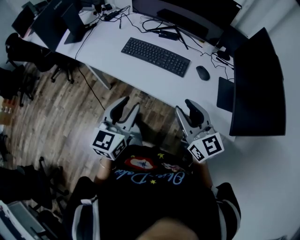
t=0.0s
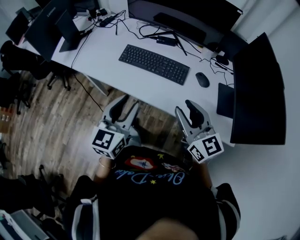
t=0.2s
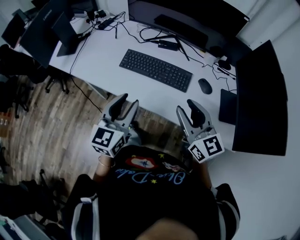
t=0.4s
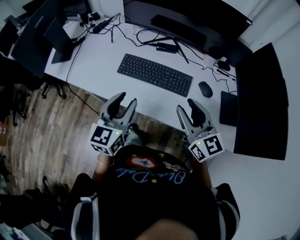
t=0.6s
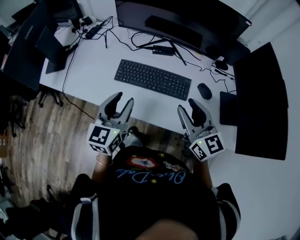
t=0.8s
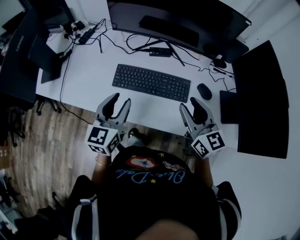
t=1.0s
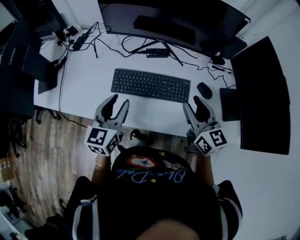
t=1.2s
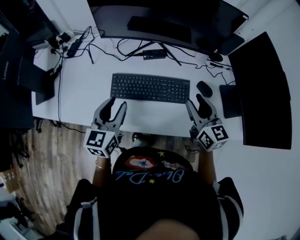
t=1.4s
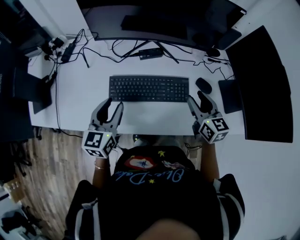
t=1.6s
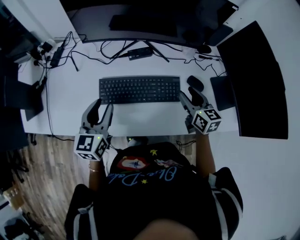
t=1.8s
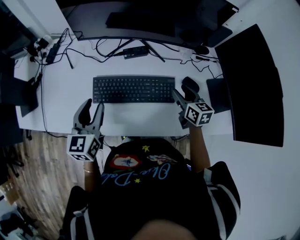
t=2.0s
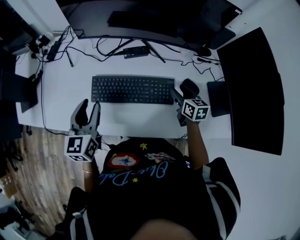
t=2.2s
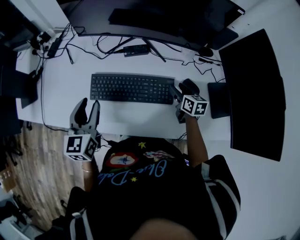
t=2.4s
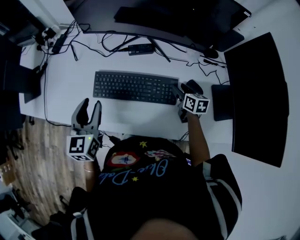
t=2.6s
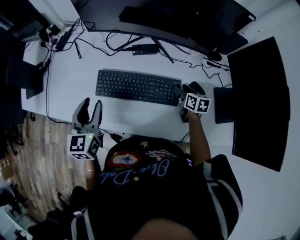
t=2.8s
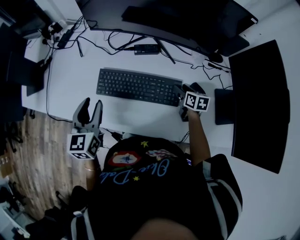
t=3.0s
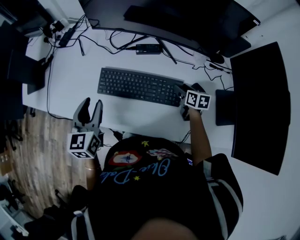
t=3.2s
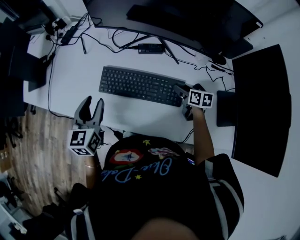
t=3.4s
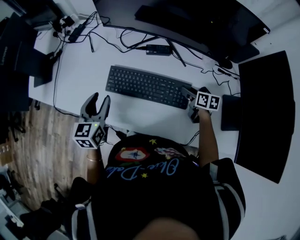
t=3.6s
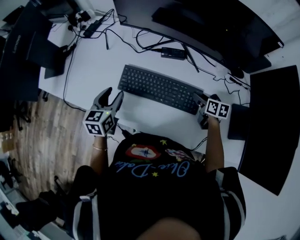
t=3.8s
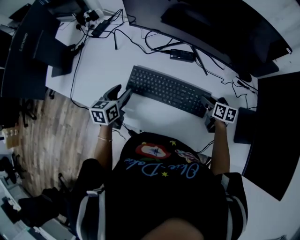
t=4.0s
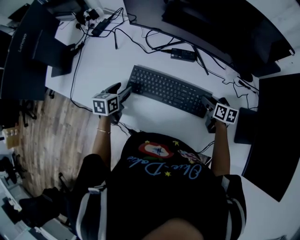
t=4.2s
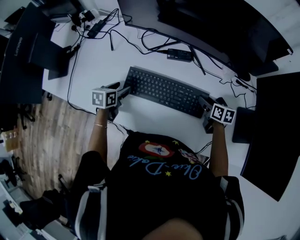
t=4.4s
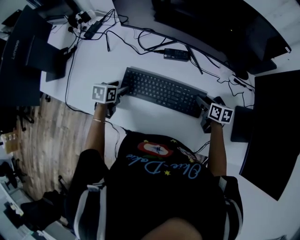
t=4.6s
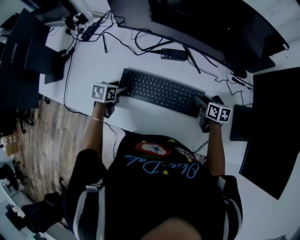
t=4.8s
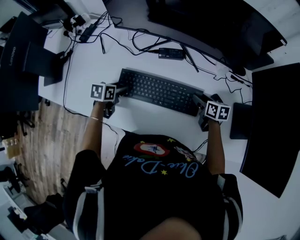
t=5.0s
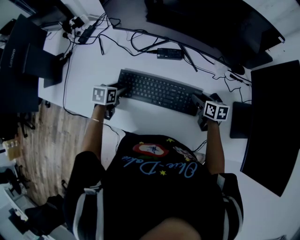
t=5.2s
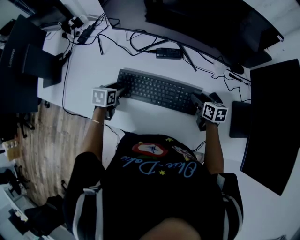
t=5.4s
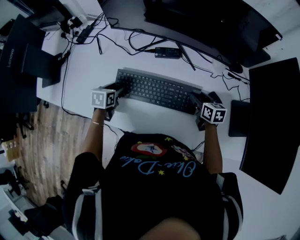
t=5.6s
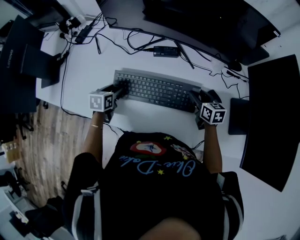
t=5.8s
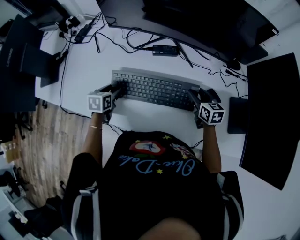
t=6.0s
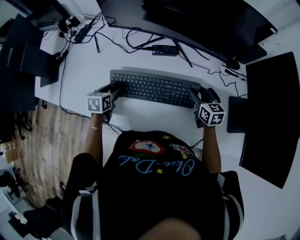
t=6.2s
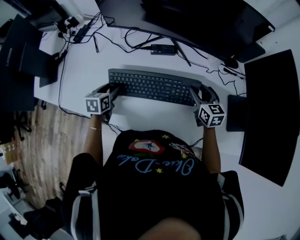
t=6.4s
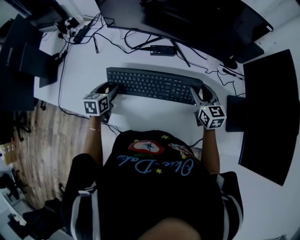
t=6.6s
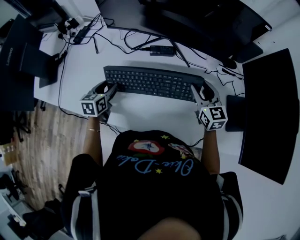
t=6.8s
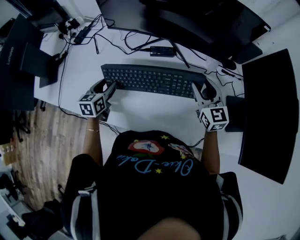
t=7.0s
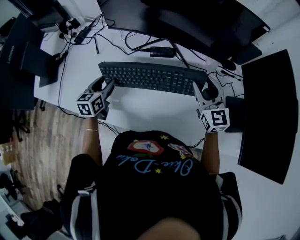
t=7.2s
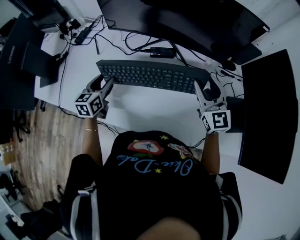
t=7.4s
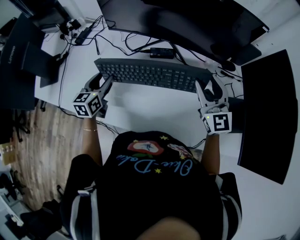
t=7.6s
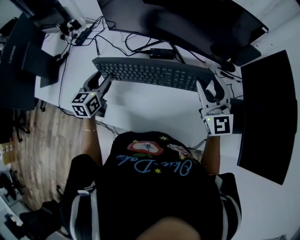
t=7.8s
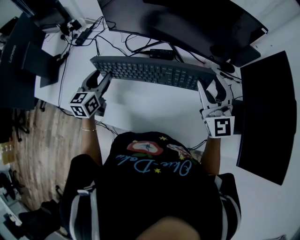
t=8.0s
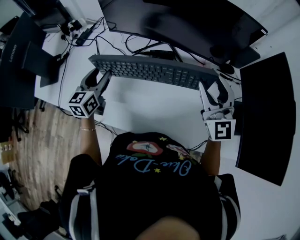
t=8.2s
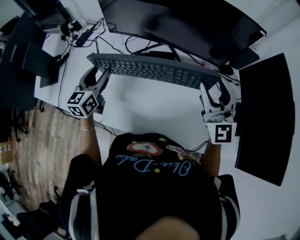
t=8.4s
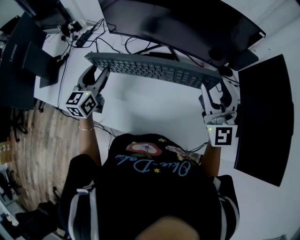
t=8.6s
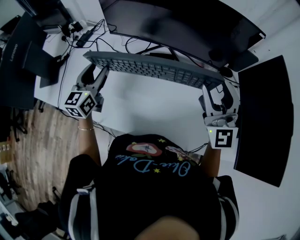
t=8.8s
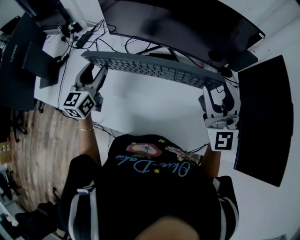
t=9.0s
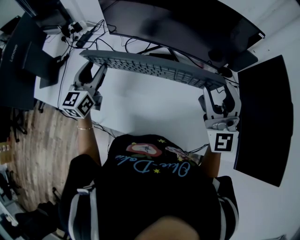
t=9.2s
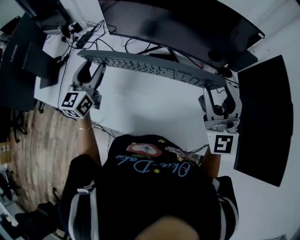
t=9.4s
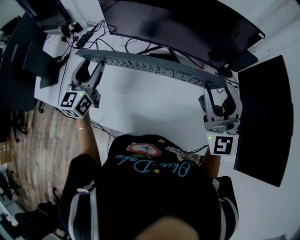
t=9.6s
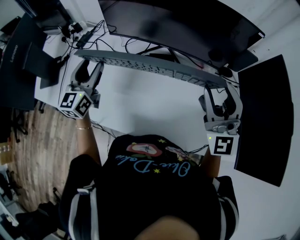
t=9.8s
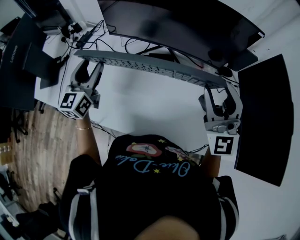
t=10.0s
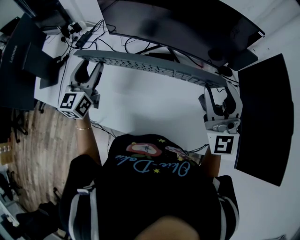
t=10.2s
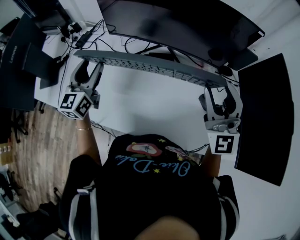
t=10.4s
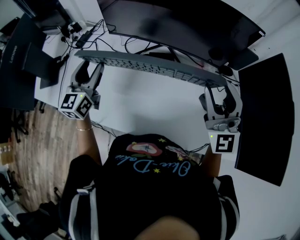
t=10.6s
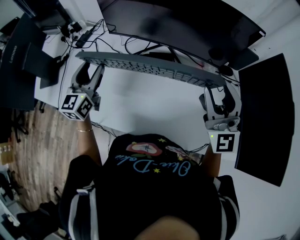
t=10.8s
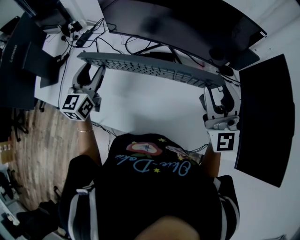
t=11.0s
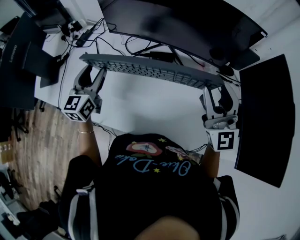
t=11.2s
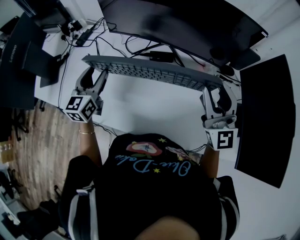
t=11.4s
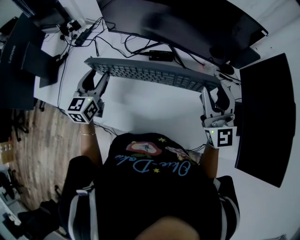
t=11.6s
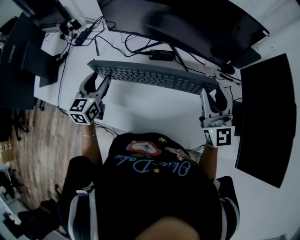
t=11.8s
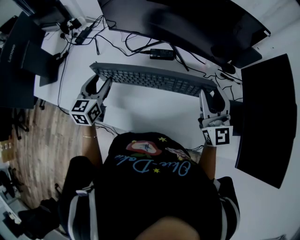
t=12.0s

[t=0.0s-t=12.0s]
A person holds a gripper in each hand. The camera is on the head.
t=0.0s to t=1.6s: The right gripper moves about 25 cm, and rotates roughly 40 degrees. The left gripper changes place by approximately 35 cm.
t=1.6s to t=3.0s: The right gripper moves downward and forward, approximately 20 cm, and swivels about 30 degrees.
t=3.0s to t=4.4s: The left gripper shifts approximately 20 cm downward and forward, turns by approximately 40 degrees, and opens its fingers.
t=4.4s to t=6.0s: There are only small adjustments of the grippers.
t=6.0s to t=7.6s: The left gripper moves upward, approximately 15 cm, and changes its angle by some 30 degrees. The right gripper heads upward, covering about 20 cm, and tilts its fingers some 30 degrees upward.
t=7.6s to t=9.0s: Both grippers travel together upward, roughly 10 cm. The right gripper rotates approximately 20 degrees.
t=9.0s to t=10.4s: The grippers make only small movements.
t=10.4s to t=12.0s: The two grippers go some 10 cm downward. The right gripper turns by about 30 degrees.

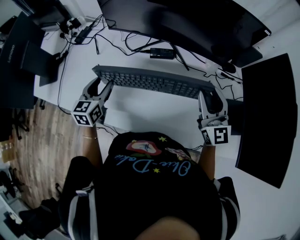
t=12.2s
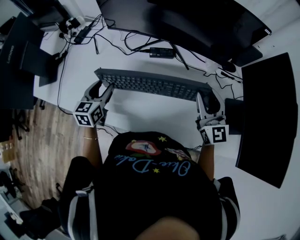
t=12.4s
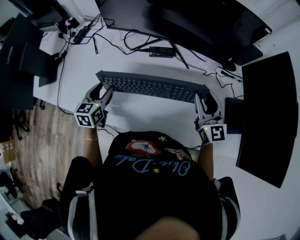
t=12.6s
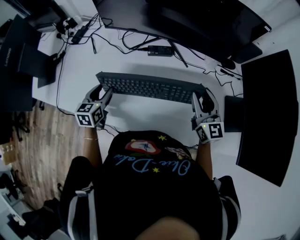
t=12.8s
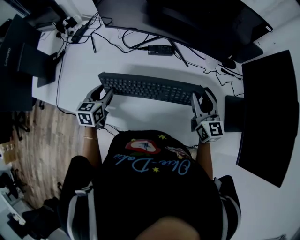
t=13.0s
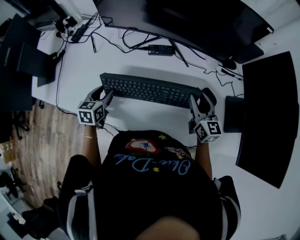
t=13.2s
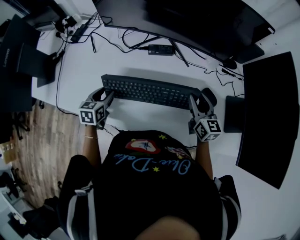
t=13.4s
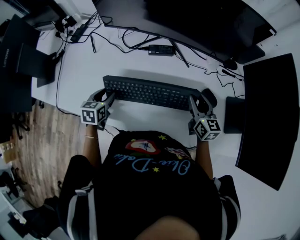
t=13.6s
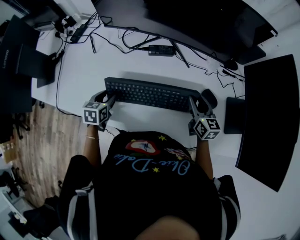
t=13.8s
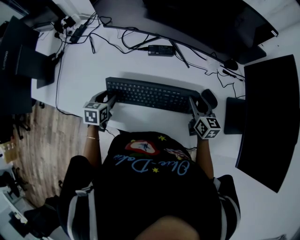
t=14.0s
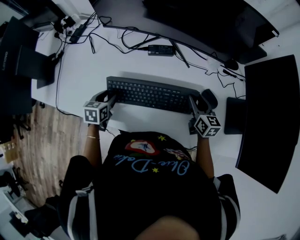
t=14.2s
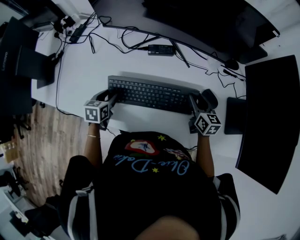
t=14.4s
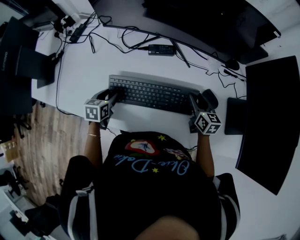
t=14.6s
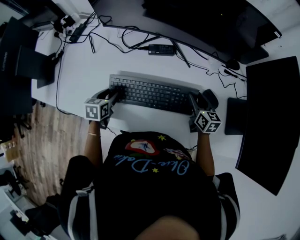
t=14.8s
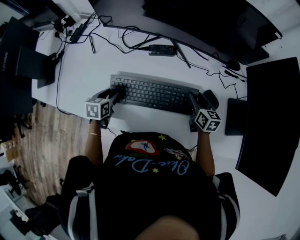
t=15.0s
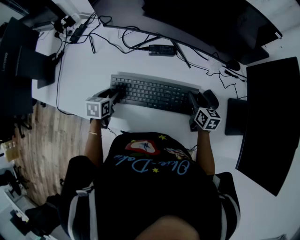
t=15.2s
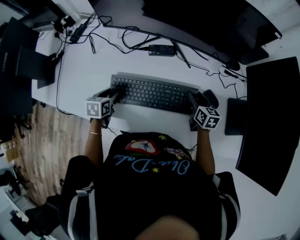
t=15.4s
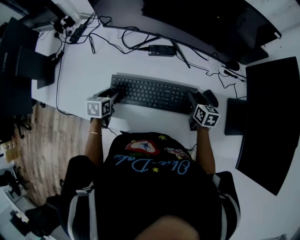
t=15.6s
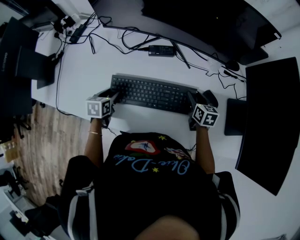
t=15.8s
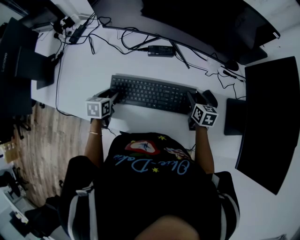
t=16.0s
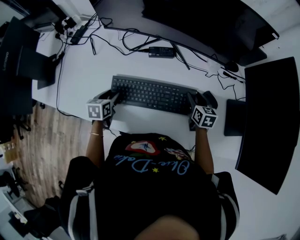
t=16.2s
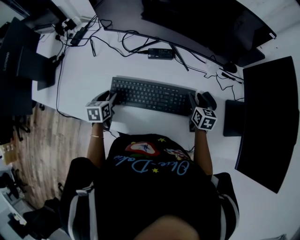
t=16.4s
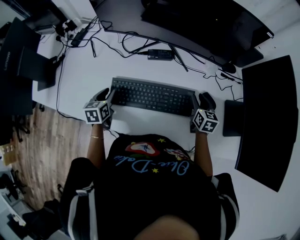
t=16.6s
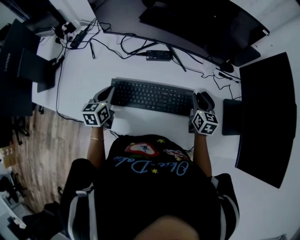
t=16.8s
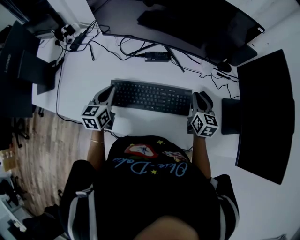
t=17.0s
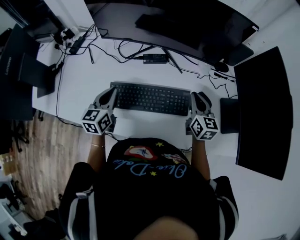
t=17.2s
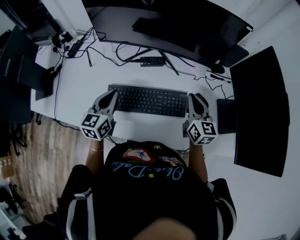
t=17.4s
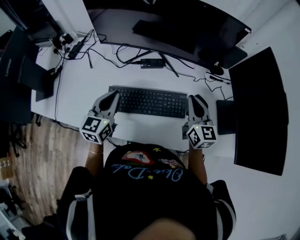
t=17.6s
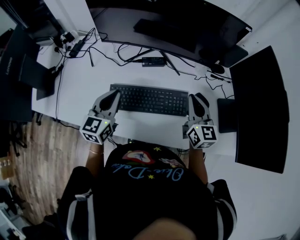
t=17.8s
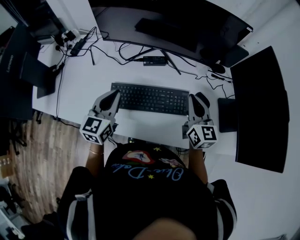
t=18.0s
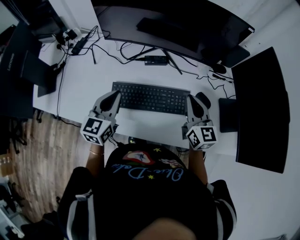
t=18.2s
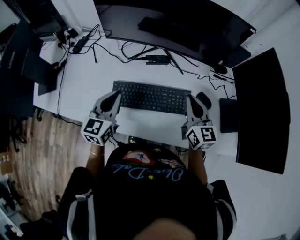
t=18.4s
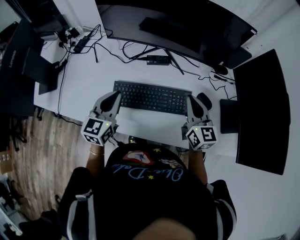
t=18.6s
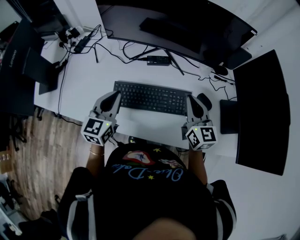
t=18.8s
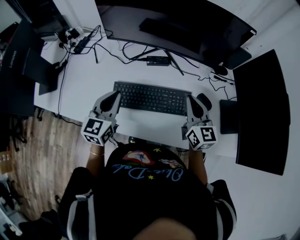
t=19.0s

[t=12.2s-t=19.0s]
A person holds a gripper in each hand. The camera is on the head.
t=12.2s to t=13.6s: The grippers both shift downward by about 15 cm. The right gripper changes its angle by about 30 degrees. The left gripper changes its angle by about 20 degrees.
t=13.6s to t=15.0s: The right gripper shifts approximately 5 cm downward.
t=15.0s to t=16.2s: There are only small adjustments of the grippers.
t=16.2s to t=17.6s: The two grippers go some 20 cm upward. The right gripper rotates about 30 degrees, and closes. Meanwhile the left gripper angles its fingers upward, by about 40 degrees, and closes.
t=17.6s to t=19.0s: There are only small adjustments of the grippers.

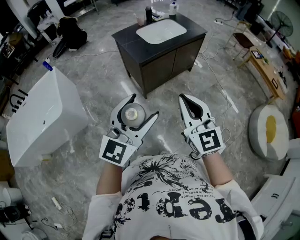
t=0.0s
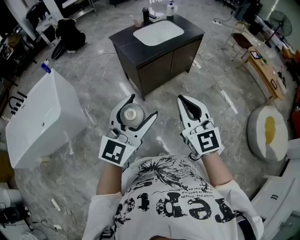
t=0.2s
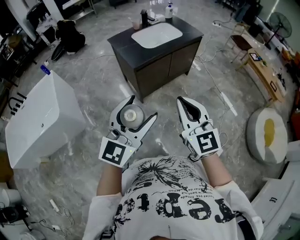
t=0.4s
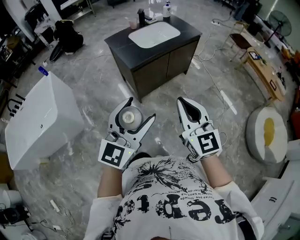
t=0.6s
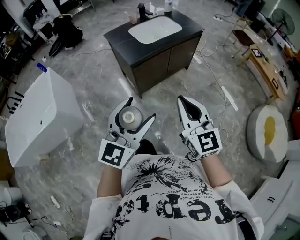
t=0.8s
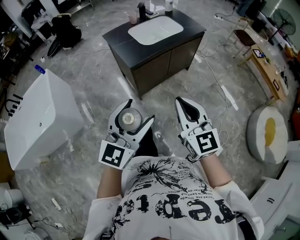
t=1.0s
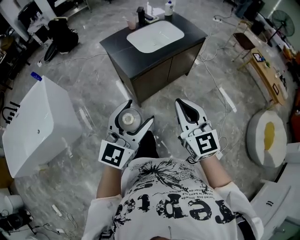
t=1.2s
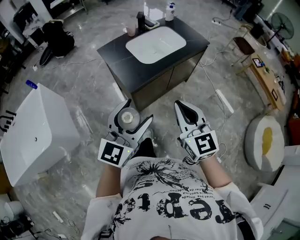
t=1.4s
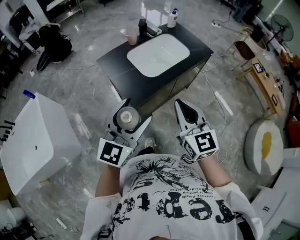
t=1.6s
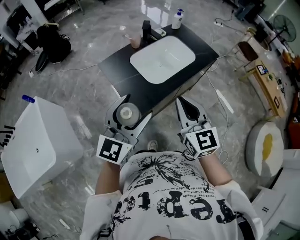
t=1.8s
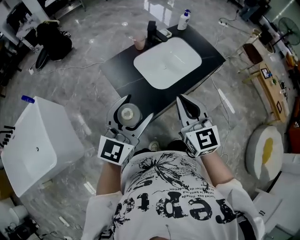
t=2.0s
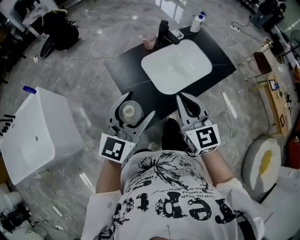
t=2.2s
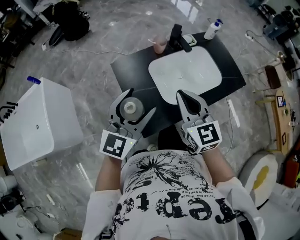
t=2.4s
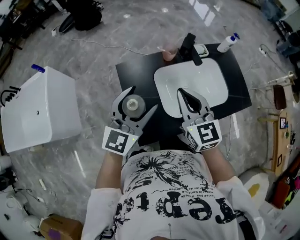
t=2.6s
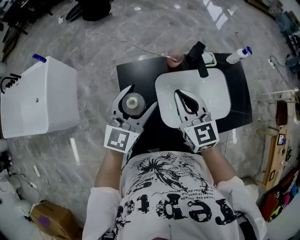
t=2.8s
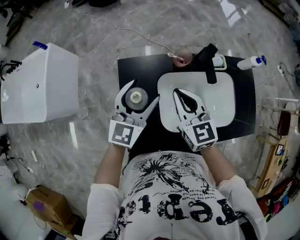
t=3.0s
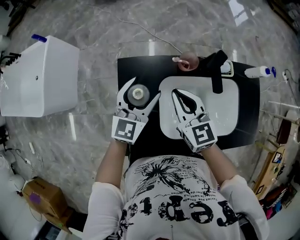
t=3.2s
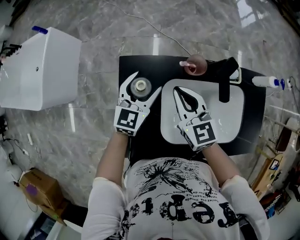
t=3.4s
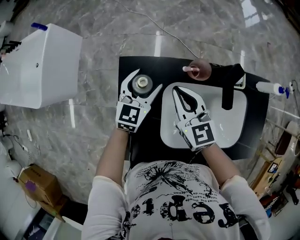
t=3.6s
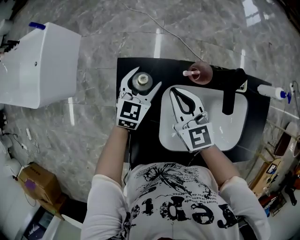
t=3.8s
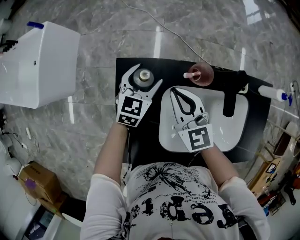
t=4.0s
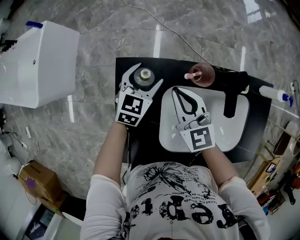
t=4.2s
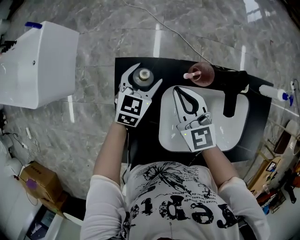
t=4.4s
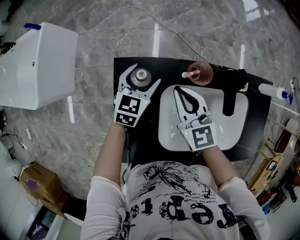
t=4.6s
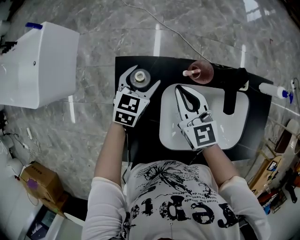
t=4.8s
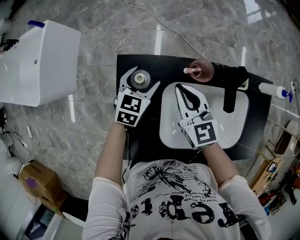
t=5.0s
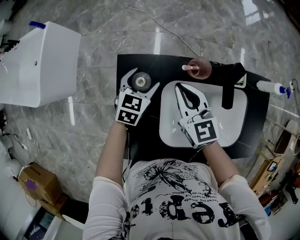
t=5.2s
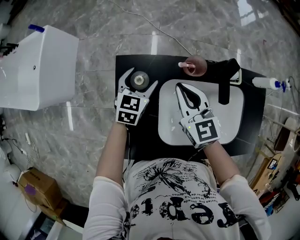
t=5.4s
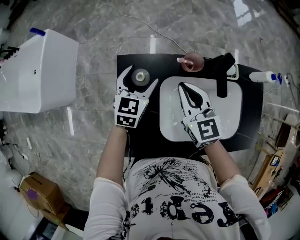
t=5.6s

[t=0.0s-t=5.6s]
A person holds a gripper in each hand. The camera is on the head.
t=0.0s to t=1.4s: Both grippers move forward, roughly 30 cm.
t=1.4s to t=2.8s: Both grippers are carried roughly 60 cm. The right gripper swivels roughly 30 degrees, while the left gripper swivels roughly 30 degrees.
t=2.8s to t=4.2s: The left gripper moves downward and forward, about 35 cm, and tips its fingers downward by approximately 30 degrees; the right gripper is displaced forward and downward by roughly 25 cm.
t=4.2s to t=5.6s: The left gripper moves upward and backward, some 10 cm; the right gripper moves backward, some 5 cm.
